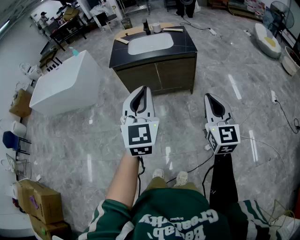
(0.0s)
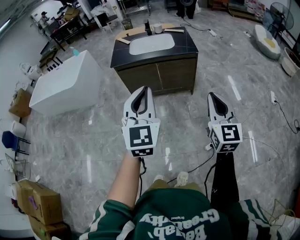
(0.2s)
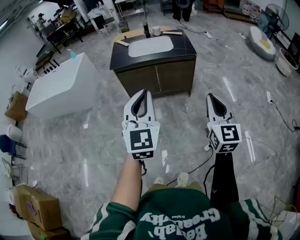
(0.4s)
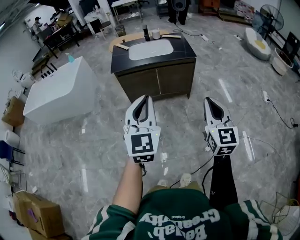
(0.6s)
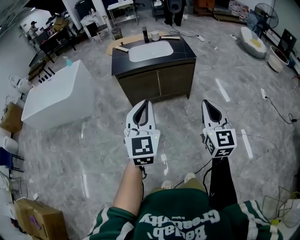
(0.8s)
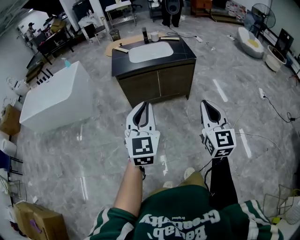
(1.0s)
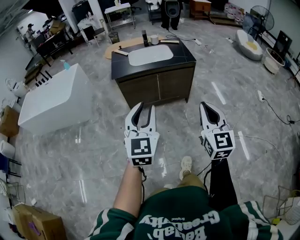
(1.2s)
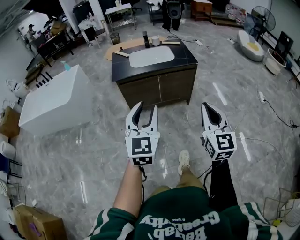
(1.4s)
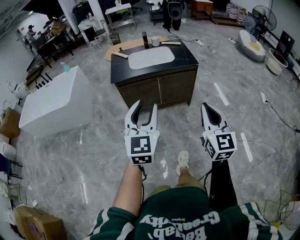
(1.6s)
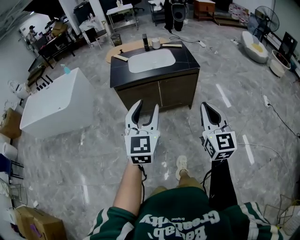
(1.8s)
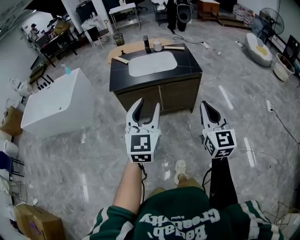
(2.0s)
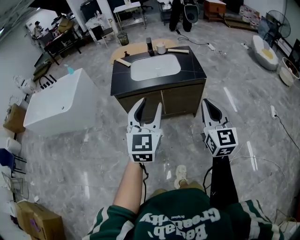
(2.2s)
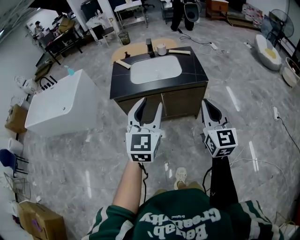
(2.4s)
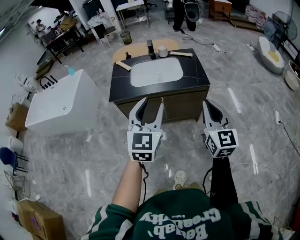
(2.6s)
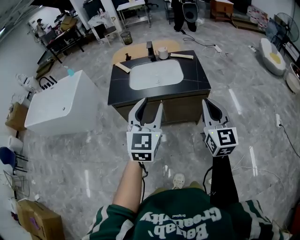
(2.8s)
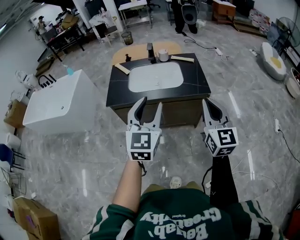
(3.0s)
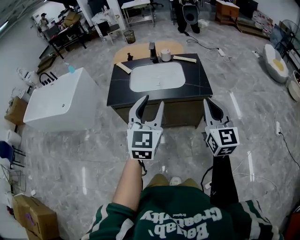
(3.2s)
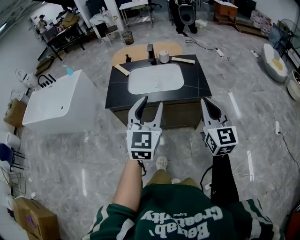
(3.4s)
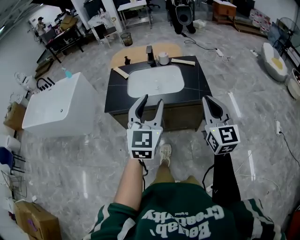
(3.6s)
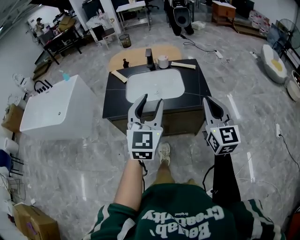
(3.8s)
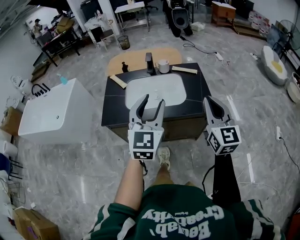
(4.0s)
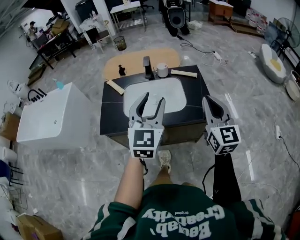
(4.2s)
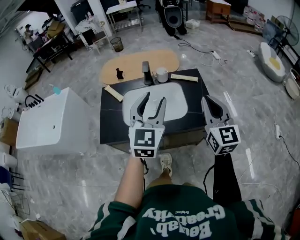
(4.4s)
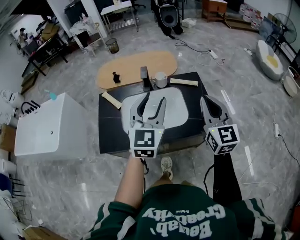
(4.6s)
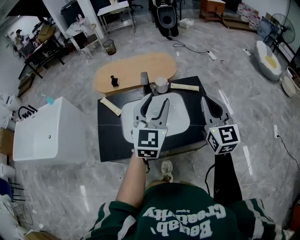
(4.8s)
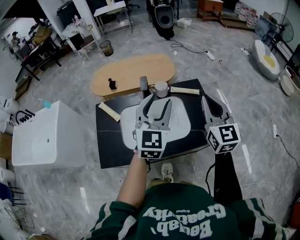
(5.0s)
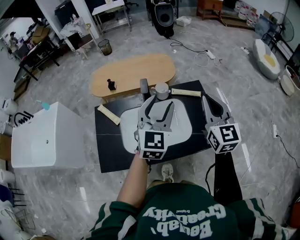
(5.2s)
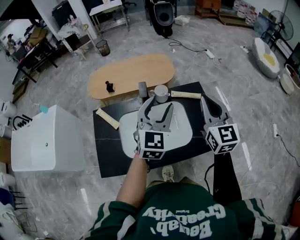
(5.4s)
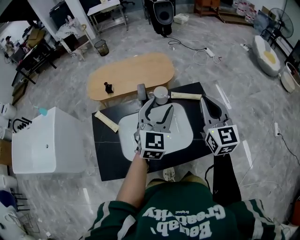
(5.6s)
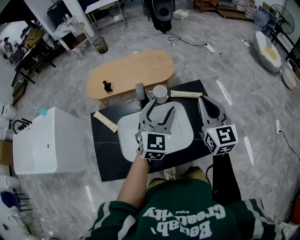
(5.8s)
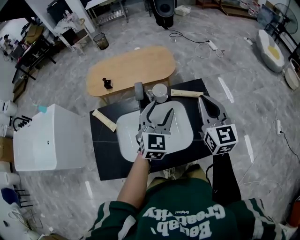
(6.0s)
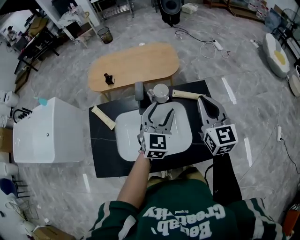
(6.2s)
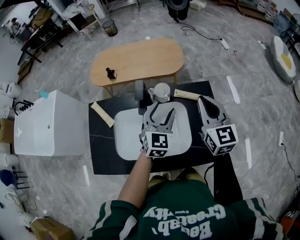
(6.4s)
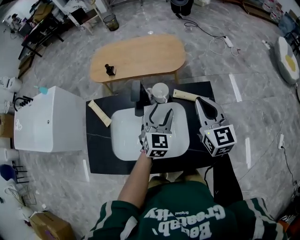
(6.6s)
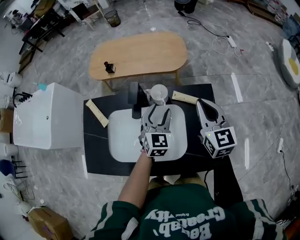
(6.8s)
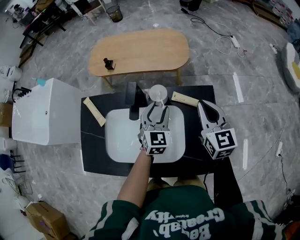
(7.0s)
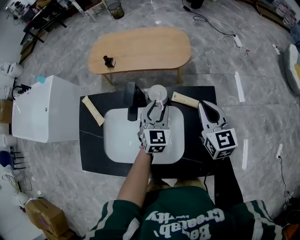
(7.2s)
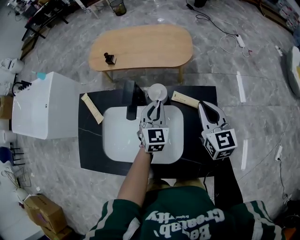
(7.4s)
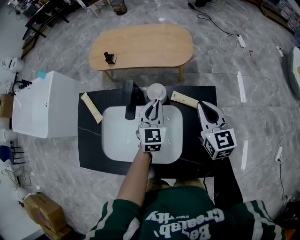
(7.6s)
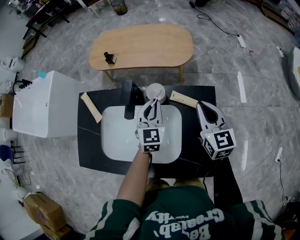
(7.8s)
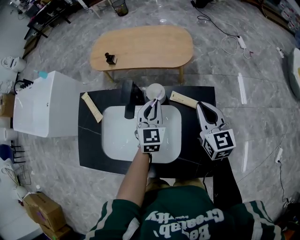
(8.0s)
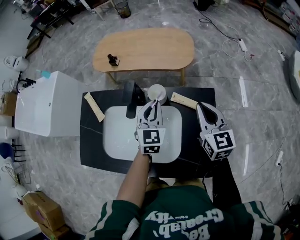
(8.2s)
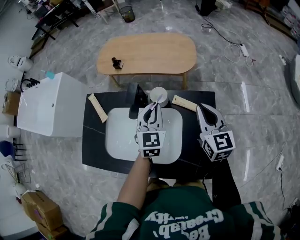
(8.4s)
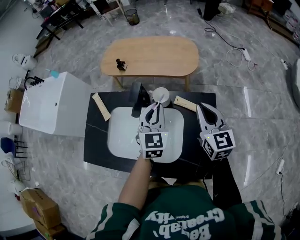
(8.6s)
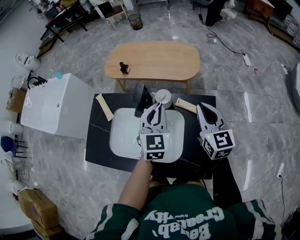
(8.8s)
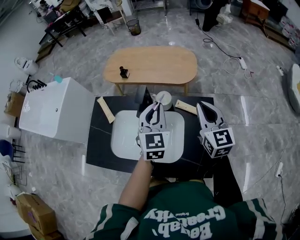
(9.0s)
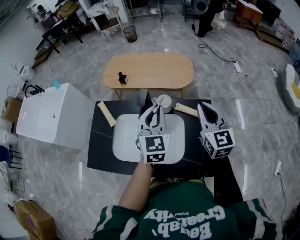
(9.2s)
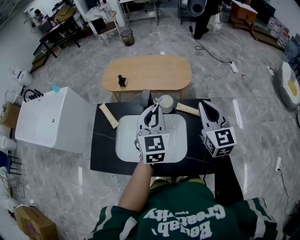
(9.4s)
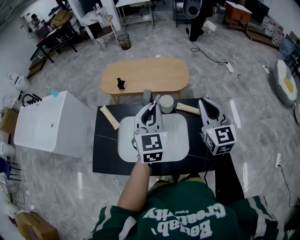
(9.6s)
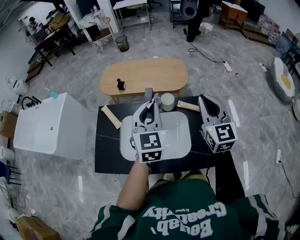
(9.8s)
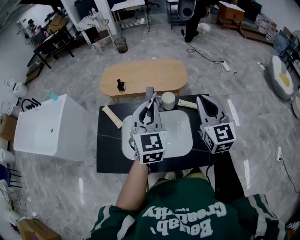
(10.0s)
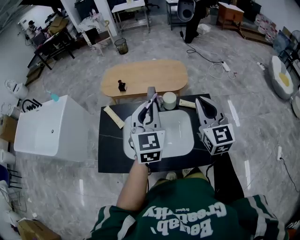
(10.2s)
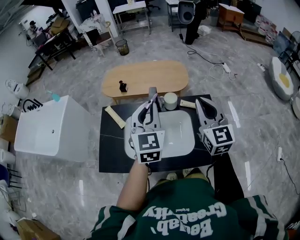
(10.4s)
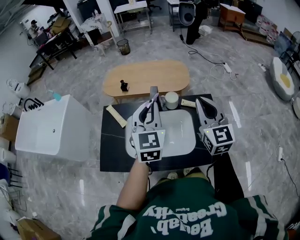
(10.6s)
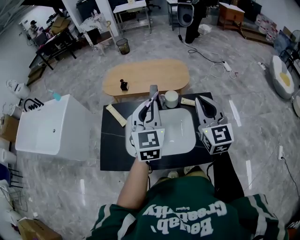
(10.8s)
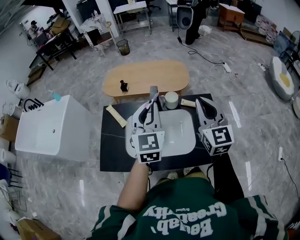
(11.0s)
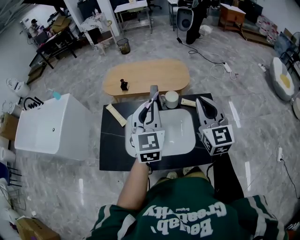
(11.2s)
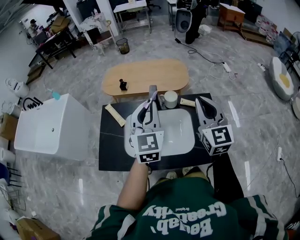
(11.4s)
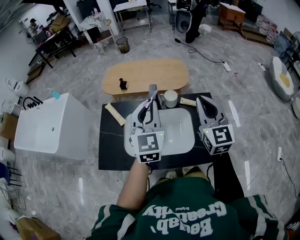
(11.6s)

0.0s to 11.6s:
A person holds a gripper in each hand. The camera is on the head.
0.0s to 1.4s: The two grippers go about 15 cm to the left. The left gripper opens.
1.4s to 2.8s: The two grippers go some 35 cm forward.
2.8s to 4.4s: Both grippers move forward, some 30 cm.
4.4s to 5.8s: Both grippers travel together forward, roughly 25 cm.
5.8s to 7.2s: The right gripper moves forward and downward, approximately 20 cm, and changes its angle by roughly 20 degrees. The left gripper is displaced downward and forward by about 25 cm, and turns by approximately 20 degrees.
7.2s to 8.8s: The left gripper travels upward by approximately 10 cm, and closes its fingers. The right gripper travels upward by some 5 cm.
8.8s to 10.2s: The left gripper is displaced upward, to the left and backward by some 20 cm. Meanwhile the right gripper moves upward, backward and to the left, some 20 cm.
10.2s to 11.6s: There are only small adjustments of the grippers.

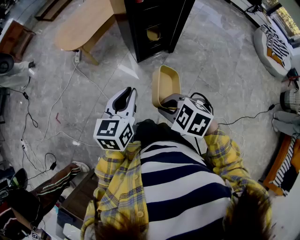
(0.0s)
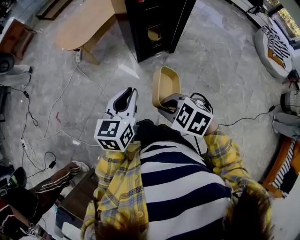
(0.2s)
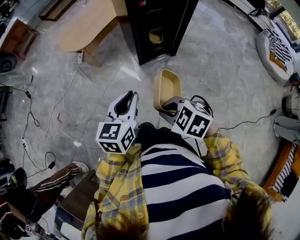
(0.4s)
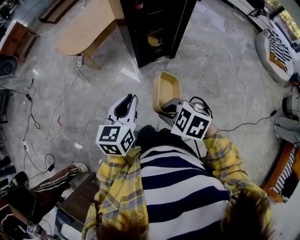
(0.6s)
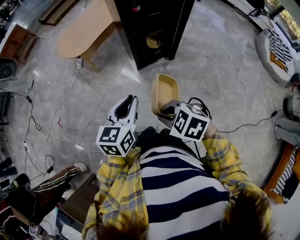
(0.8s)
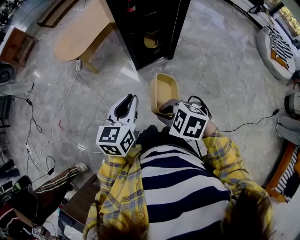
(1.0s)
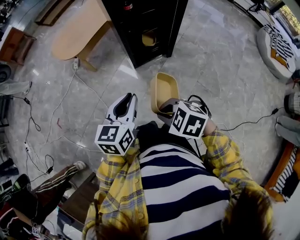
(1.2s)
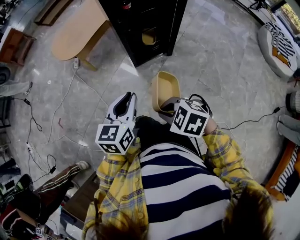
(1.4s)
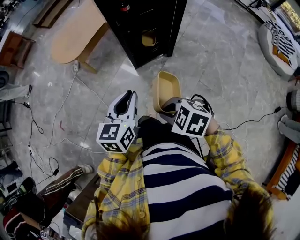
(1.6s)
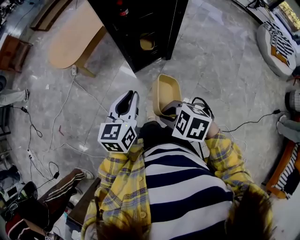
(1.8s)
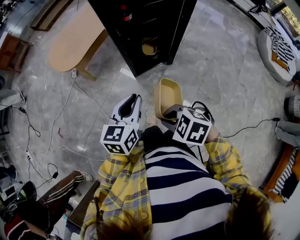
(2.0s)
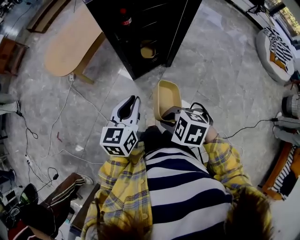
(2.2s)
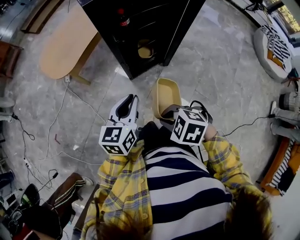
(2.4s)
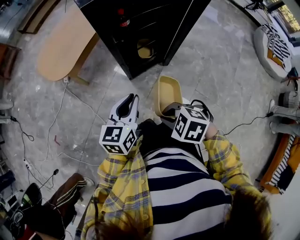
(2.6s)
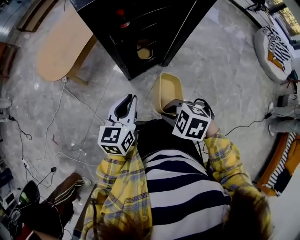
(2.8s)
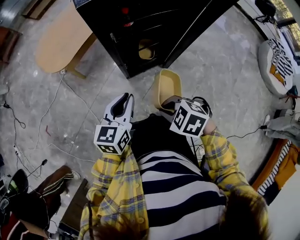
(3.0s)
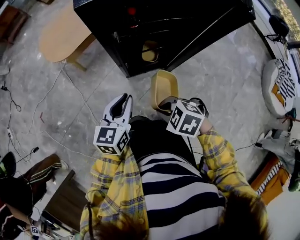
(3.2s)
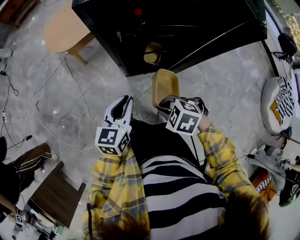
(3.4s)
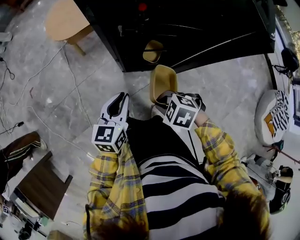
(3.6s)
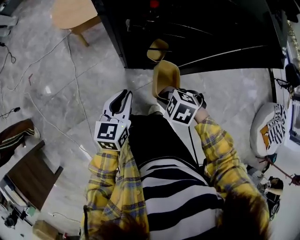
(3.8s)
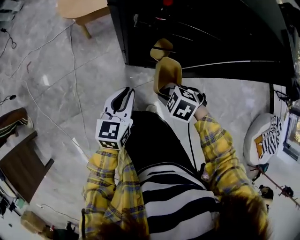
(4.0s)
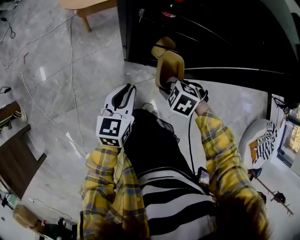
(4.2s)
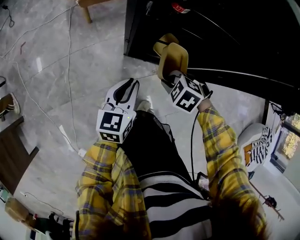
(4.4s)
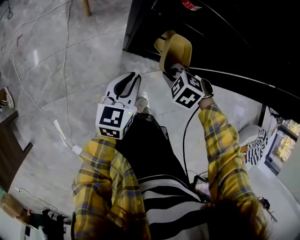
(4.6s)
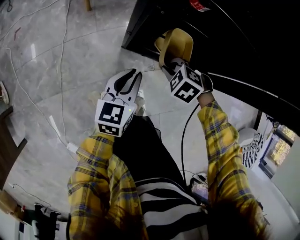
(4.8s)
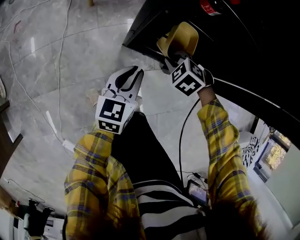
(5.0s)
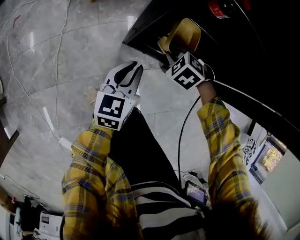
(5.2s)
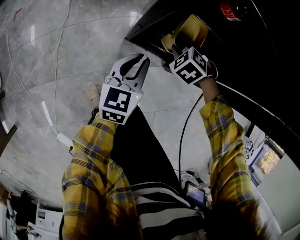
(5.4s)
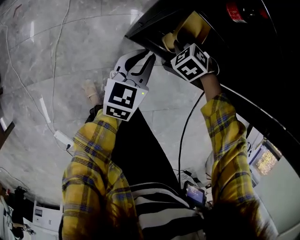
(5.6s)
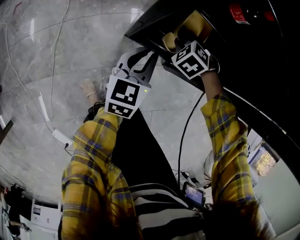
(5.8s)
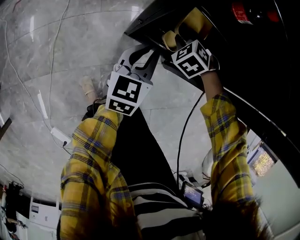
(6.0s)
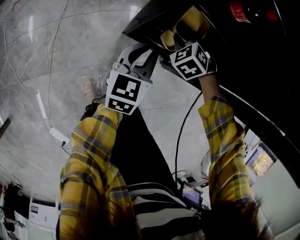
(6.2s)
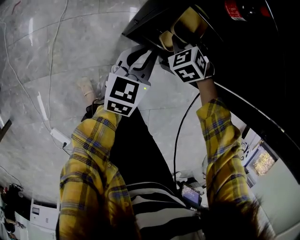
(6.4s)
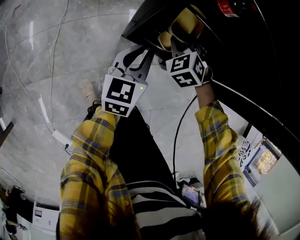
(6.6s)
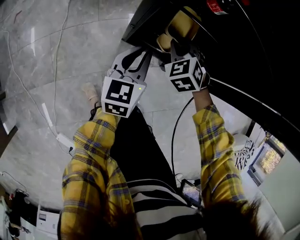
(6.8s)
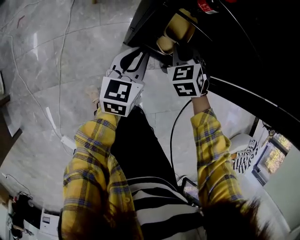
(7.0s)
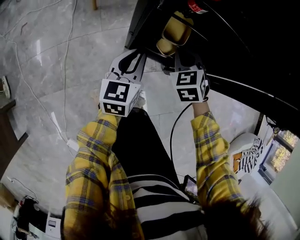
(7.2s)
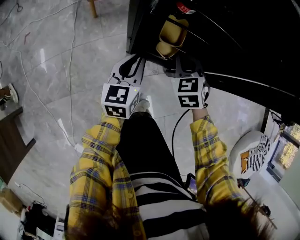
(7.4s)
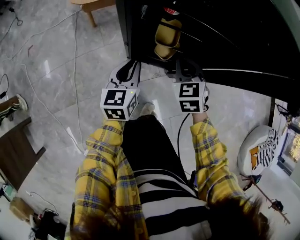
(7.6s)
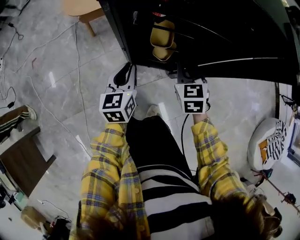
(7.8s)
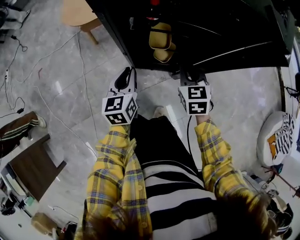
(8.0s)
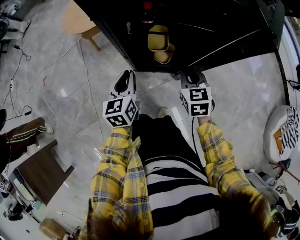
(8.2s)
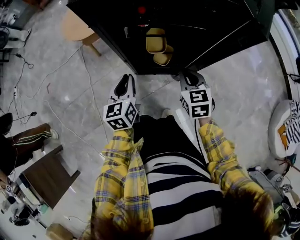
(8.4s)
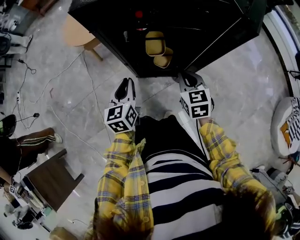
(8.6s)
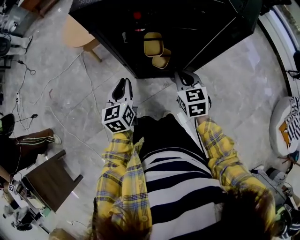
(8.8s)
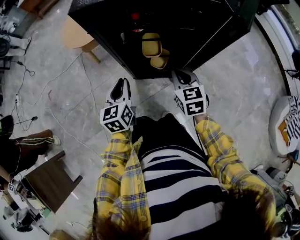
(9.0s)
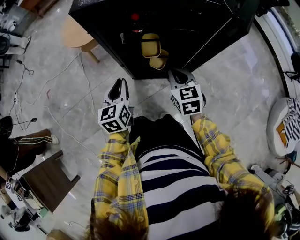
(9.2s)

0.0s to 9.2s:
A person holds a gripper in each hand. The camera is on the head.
0.0s to 1.6s: Both grippers travel together to the right, about 10 cm.
1.6s to 3.0s: The left gripper is displaced forward, to the right and downward by about 20 cm. The right gripper travels forward and to the right by approximately 20 cm.
3.0s to 4.6s: The left gripper shifts roughly 15 cm downward, and rotates roughly 30 degrees. Meanwhile the right gripper moves about 30 cm, and swivels some 40 degrees.
4.6s to 6.2s: The left gripper changes place by approximately 10 cm. Meanwhile the right gripper shifts by roughly 20 cm.
6.2s to 7.6s: The right gripper moves upward and backward, some 20 cm, and rotates some 40 degrees, while the left gripper goes roughly 10 cm upward.
7.6s to 9.2s: The left gripper heads upward, covering approximately 10 cm; the right gripper heads upward and backward, covering some 10 cm, and rotates approximately 20 degrees.

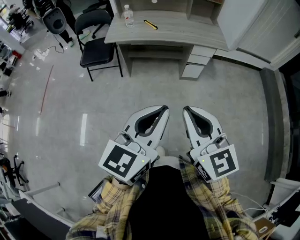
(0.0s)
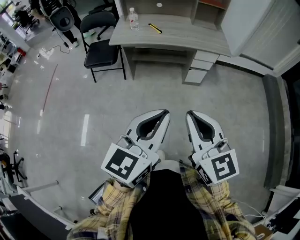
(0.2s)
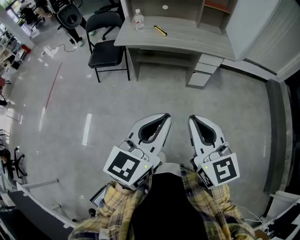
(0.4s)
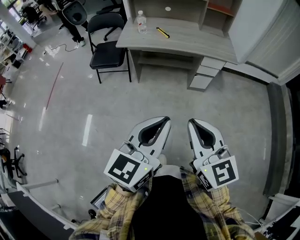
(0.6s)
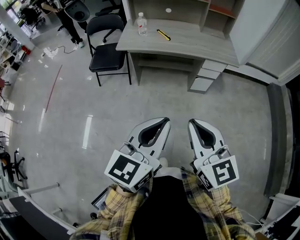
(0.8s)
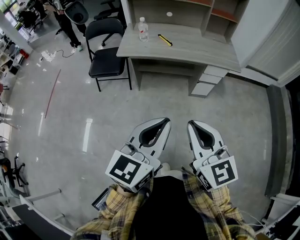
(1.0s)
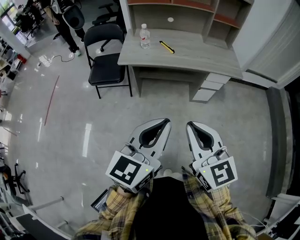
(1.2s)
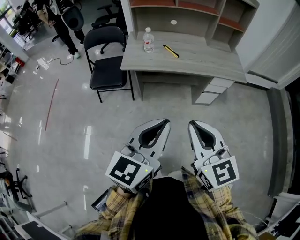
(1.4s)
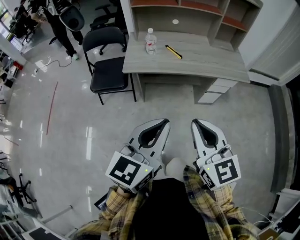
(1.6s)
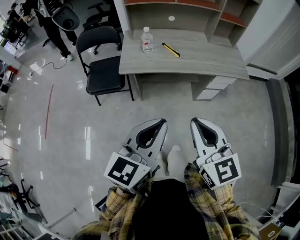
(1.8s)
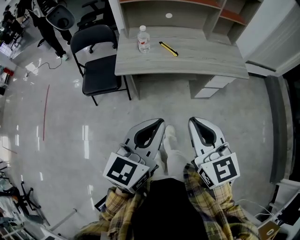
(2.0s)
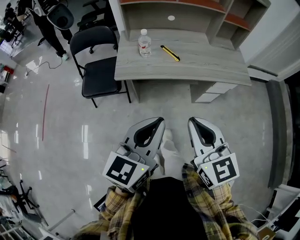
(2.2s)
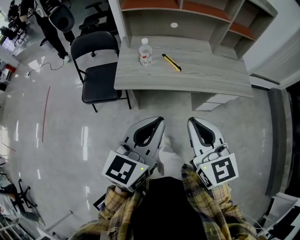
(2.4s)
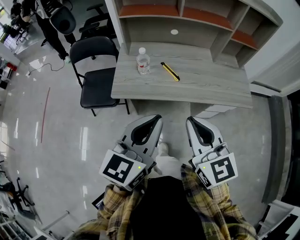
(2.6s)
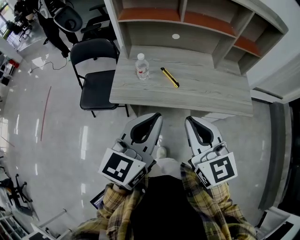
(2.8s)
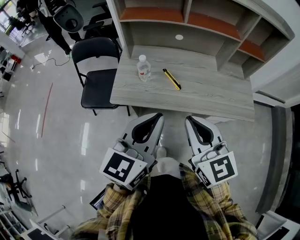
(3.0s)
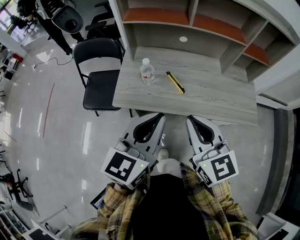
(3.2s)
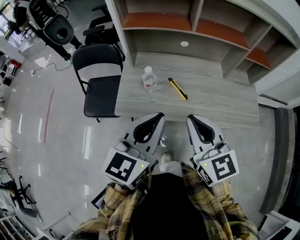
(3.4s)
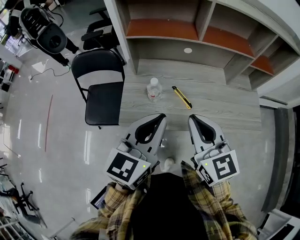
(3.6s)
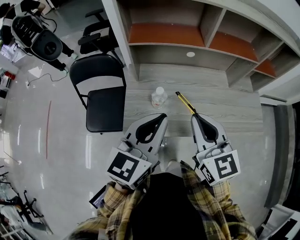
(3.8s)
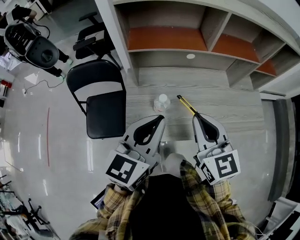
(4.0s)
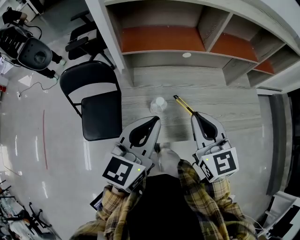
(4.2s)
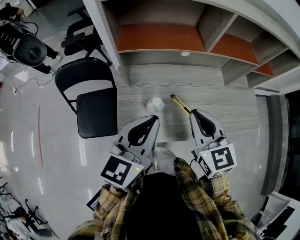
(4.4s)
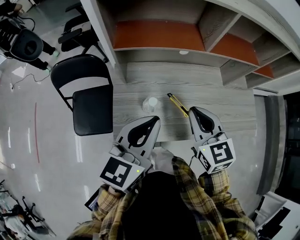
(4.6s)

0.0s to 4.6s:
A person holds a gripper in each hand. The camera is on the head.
0.0s to 1.6s: The grippers both shift forward and to the left by some 25 cm.
1.6s to 3.0s: The grippers both shift forward by approximately 30 cm.
3.0s to 4.6s: The left gripper is displaced forward and to the left by roughly 25 cm; the right gripper moves forward, some 25 cm.
